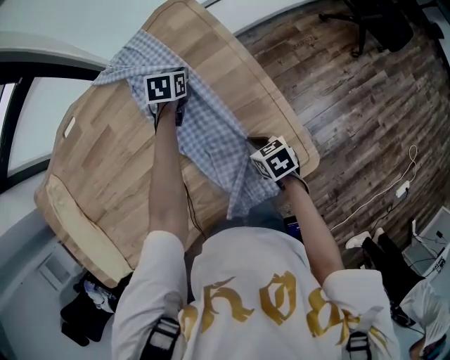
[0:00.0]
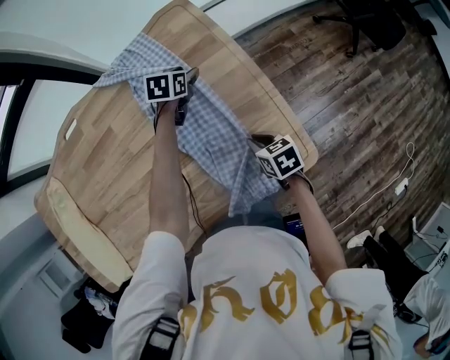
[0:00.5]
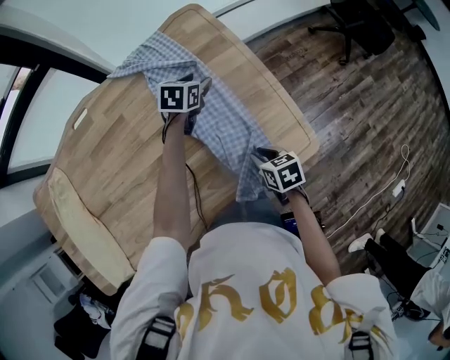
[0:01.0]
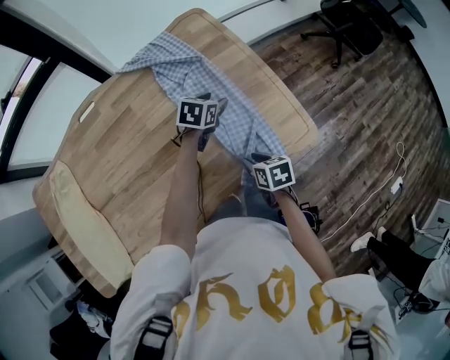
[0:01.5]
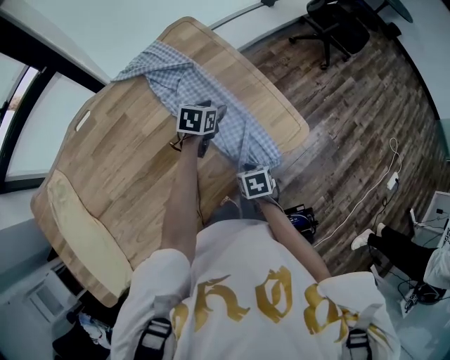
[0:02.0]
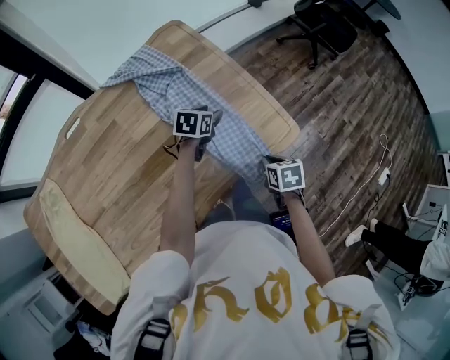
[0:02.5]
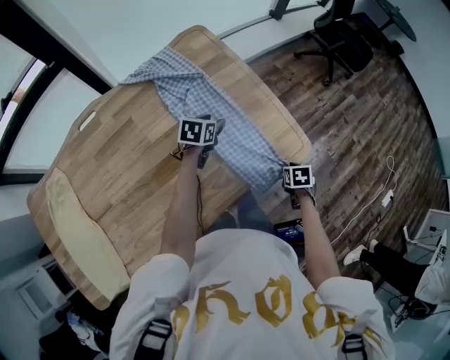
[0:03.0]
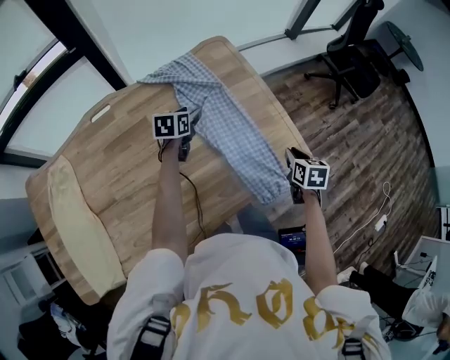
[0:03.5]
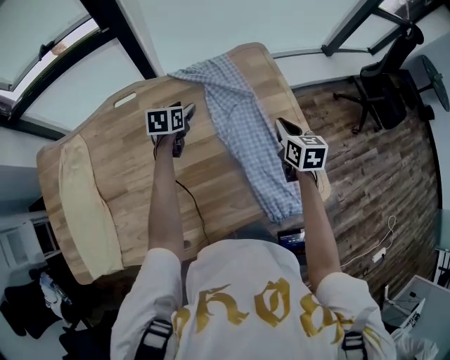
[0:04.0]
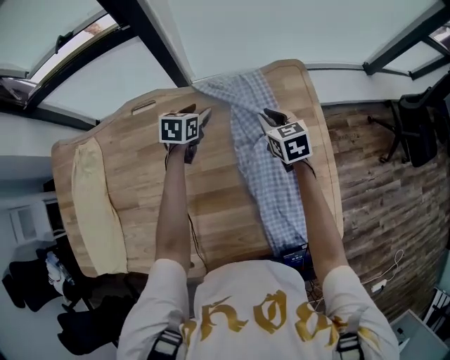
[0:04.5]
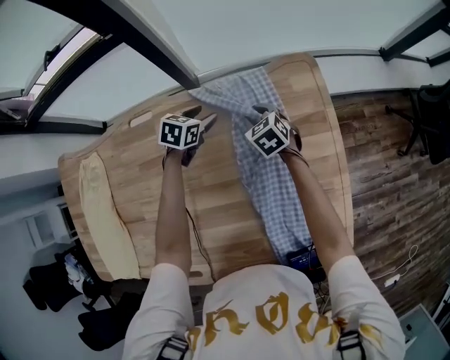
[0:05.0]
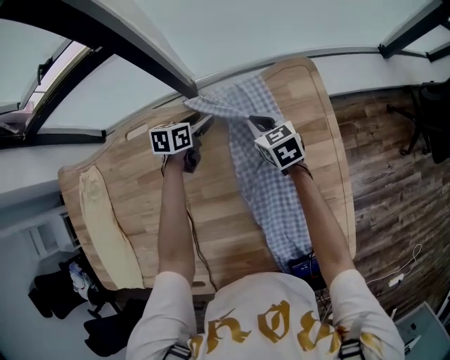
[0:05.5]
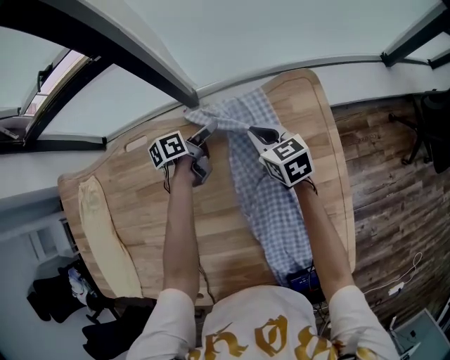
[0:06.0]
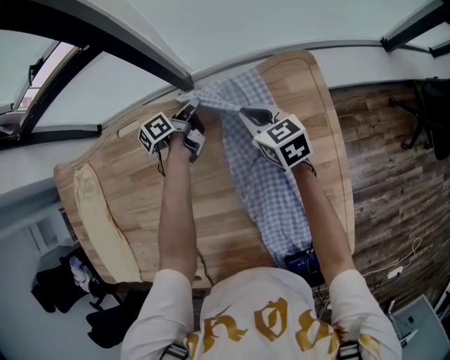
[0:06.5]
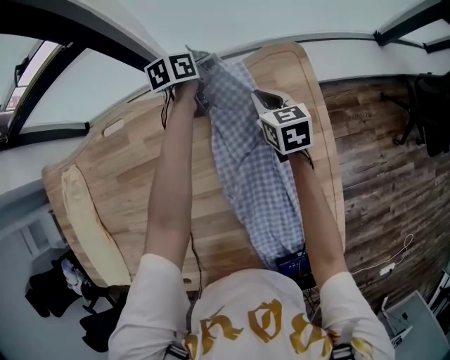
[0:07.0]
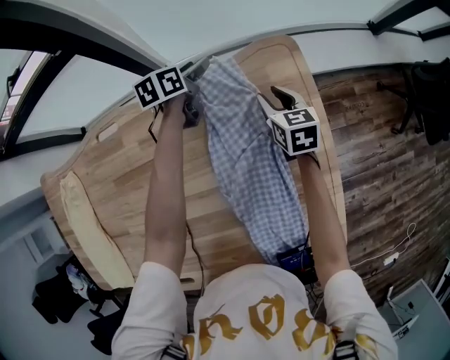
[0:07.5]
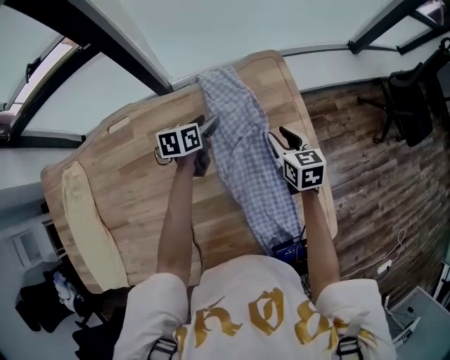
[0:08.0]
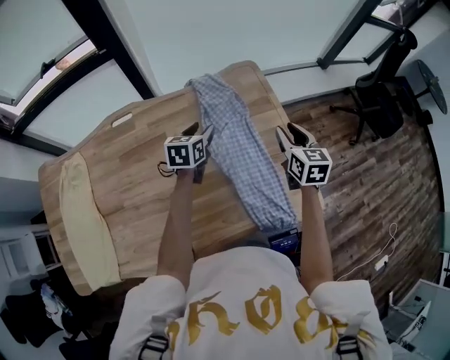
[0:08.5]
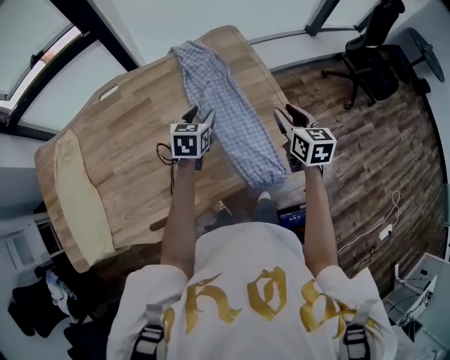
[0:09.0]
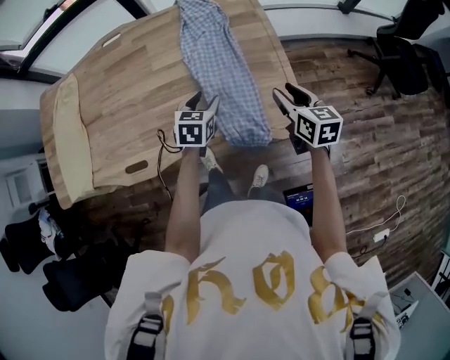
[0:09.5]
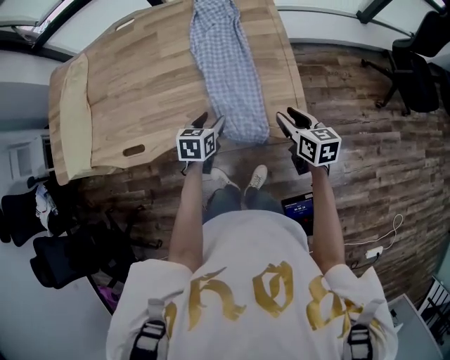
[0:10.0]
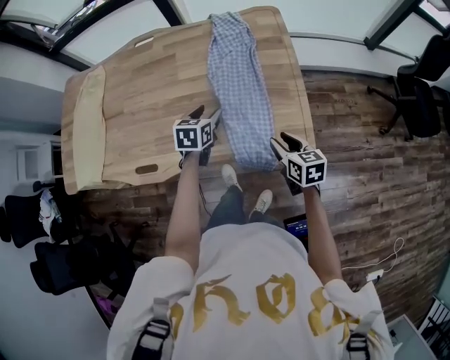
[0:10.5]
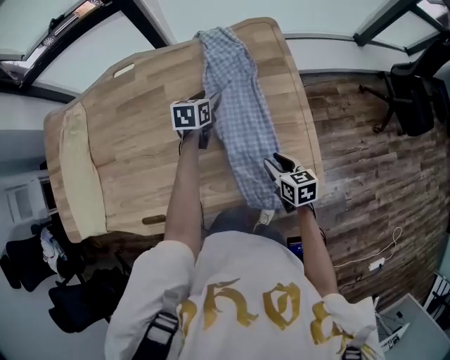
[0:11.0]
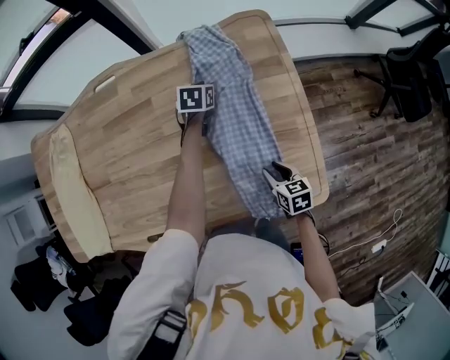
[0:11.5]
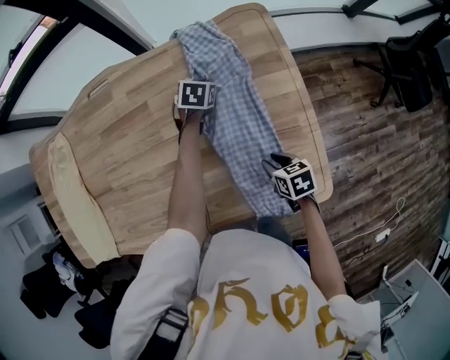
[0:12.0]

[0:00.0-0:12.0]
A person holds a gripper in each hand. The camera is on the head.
0:00.0 to 0:02.0: The left gripper changes place by roughly 25 cm, turns by approximately 20 degrees, and opens its fingers; the right gripper shifts by roughly 20 cm, turns by about 30 degrees, and opens, then closes once more.
0:02.0 to 0:04.0: The right gripper swings up and down, roughly 20 cm each way, with 2 reversals, and points its fingers some 30 degrees further upward. Meanwhile the left gripper ends up approximately 30 cm from where it was, and rotates approximately 30 degrees.
0:04.0 to 0:06.0: The right gripper moves forward, to the left and downward, some 30 cm, swivels about 30 degrees, and opens, then closes again, while the left gripper is displaced forward and downward by approximately 20 cm, and rotates around the line of its fingers by roughly 40 degrees, counterclockwise from behind.
0:06.0 to 0:08.0: The left gripper shifts approximately 10 cm backward and to the right, rotates roughly 30 degrees, and closes, then reopens. The right gripper shifts some 20 cm to the right and backward, rotates about 20 degrees, and opens up.
0:08.0 to 0:10.0: The two grippers travel together, backward, roughly 40 cm.
0:10.0 to 0:12.0: The right gripper travels forward, to the left and downward by about 25 cm, and turns by some 30 degrees, while the left gripper is displaced forward by some 40 cm, and closes up.

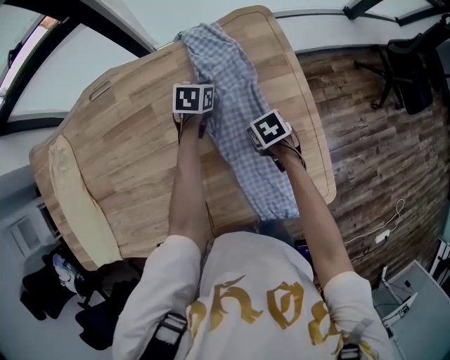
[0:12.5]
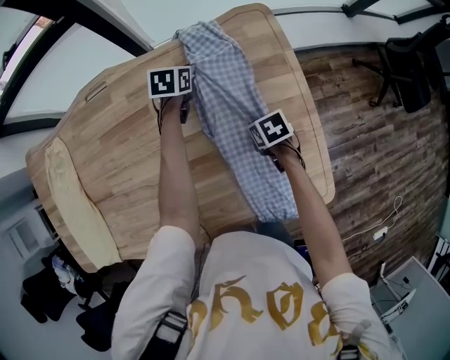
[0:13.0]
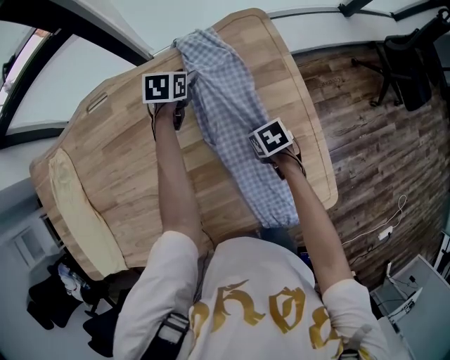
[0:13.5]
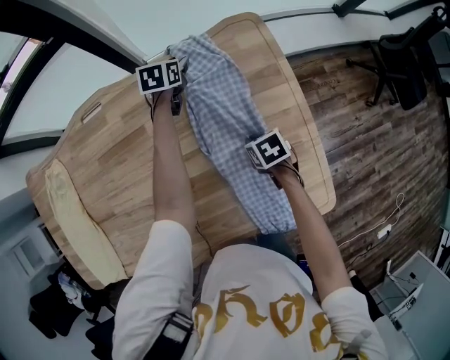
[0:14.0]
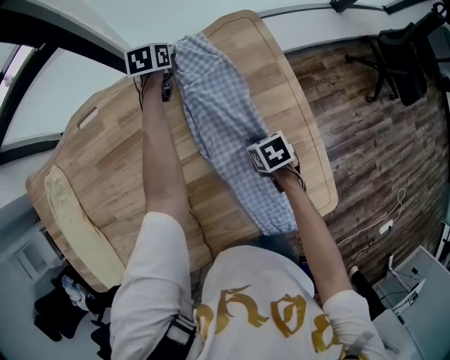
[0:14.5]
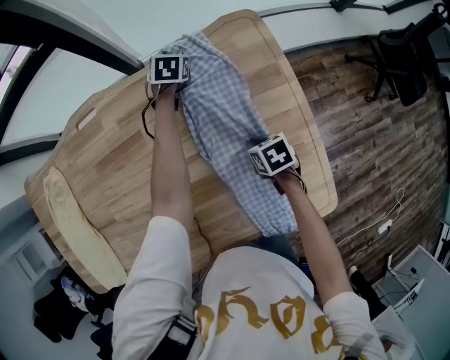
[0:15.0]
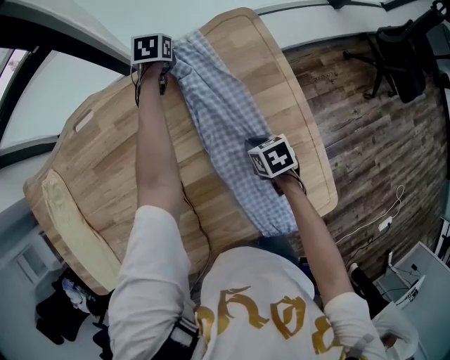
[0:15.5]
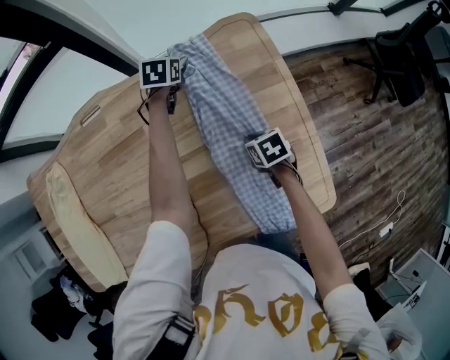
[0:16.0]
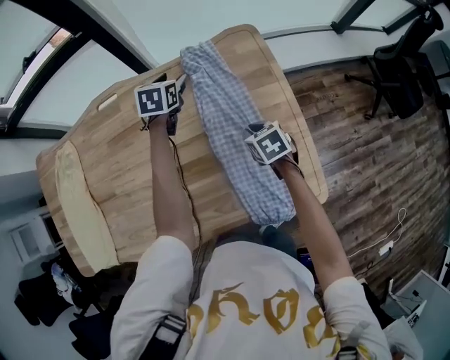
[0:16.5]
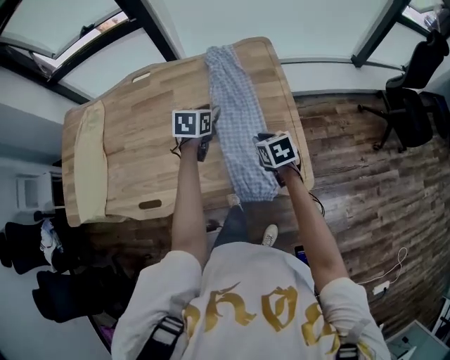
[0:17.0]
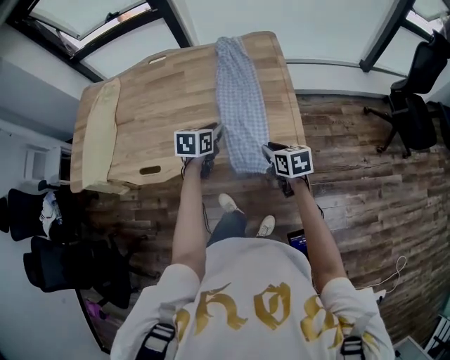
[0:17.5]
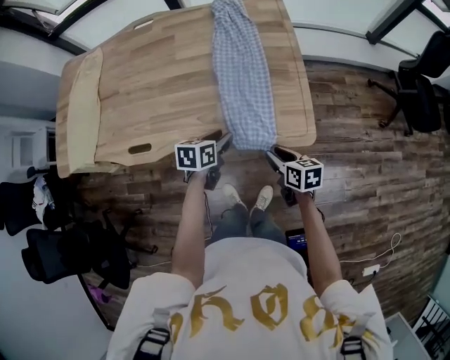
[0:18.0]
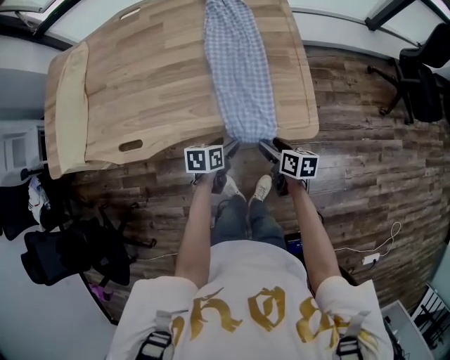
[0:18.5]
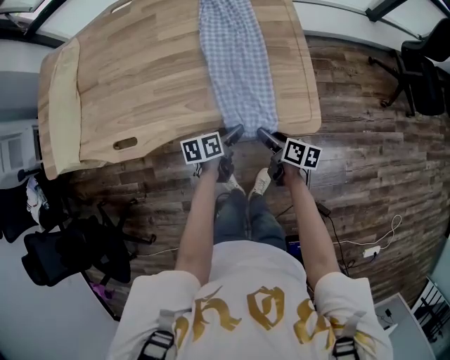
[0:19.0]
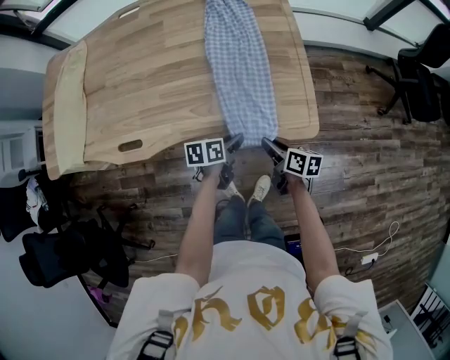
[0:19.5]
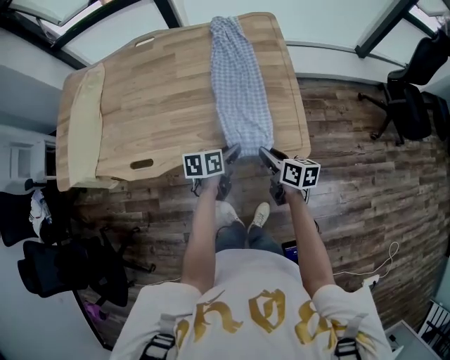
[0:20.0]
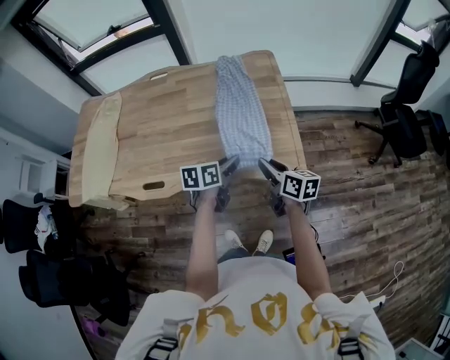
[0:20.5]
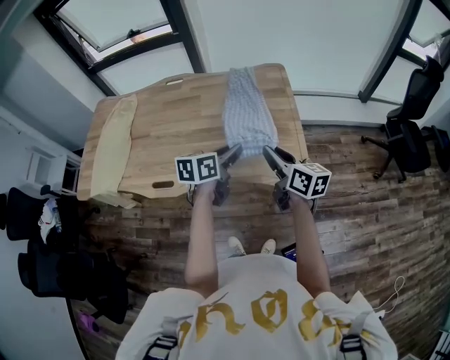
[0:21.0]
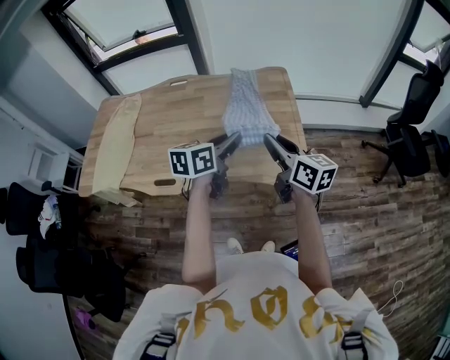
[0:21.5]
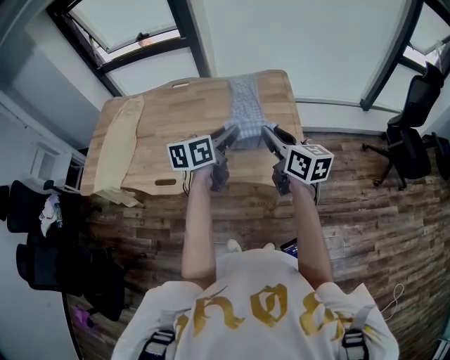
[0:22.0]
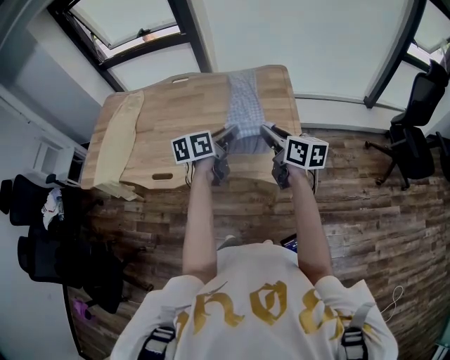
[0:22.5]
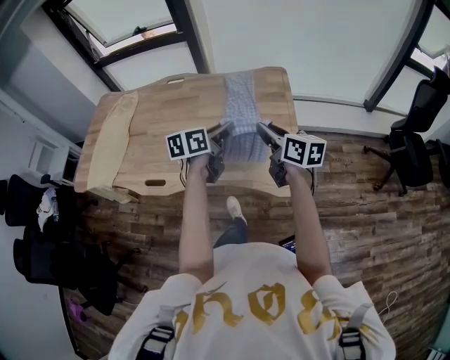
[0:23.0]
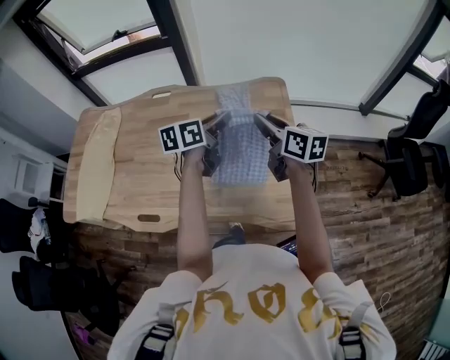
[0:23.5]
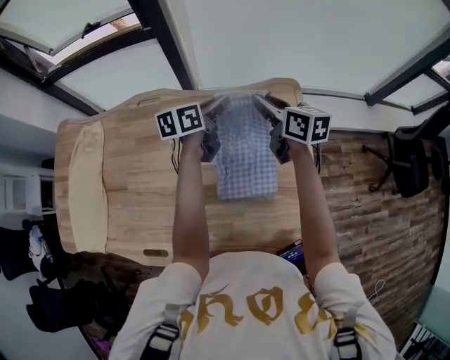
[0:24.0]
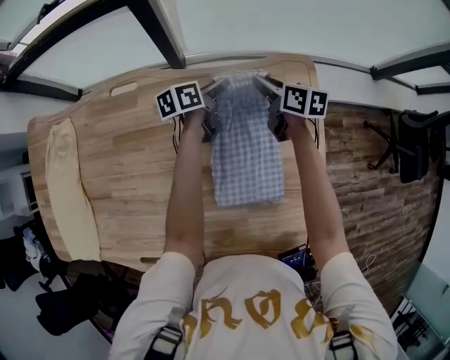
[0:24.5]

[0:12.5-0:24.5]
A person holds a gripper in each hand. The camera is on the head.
0:12.5 to 0:14.5: The left gripper moves forward, about 20 cm, and opens, then closes once more.
0:14.5 to 0:16.5: The left gripper shifts approximately 20 cm backward and upward, and opens up, while the right gripper travels upward by some 10 cm.
0:16.5 to 0:18.5: The right gripper moves backward, some 35 cm, swivels some 40 degrees, and opens its fingers; the left gripper is displaced backward by some 60 cm, turns by roughly 30 degrees, and closes and opens again.
0:18.5 to 0:20.5: The two grippers go approximately 20 cm upward. The right gripper changes its angle by some 20 degrees, and closes. Meanwhile the left gripper closes.
0:20.5 to 0:22.5: Both grippers move upward, about 15 cm.
0:22.5 to 0:24.5: The pair of grippers is taken forward, some 60 cm. The left gripper shifts approximately 25 cm downward, and swivels roughly 20 degrees. The right gripper rotates approximately 20 degrees.

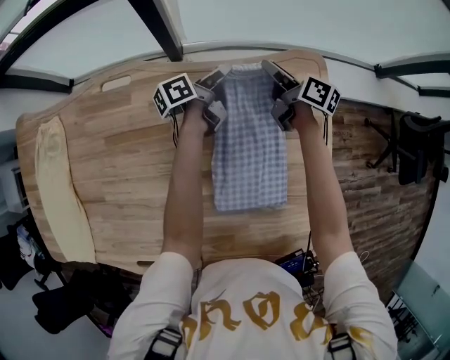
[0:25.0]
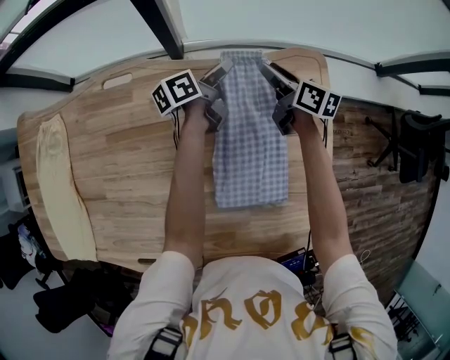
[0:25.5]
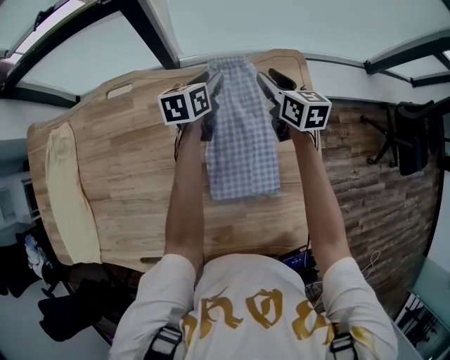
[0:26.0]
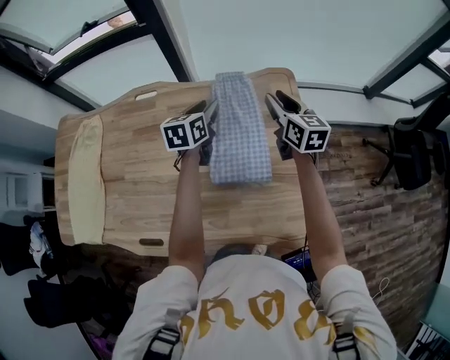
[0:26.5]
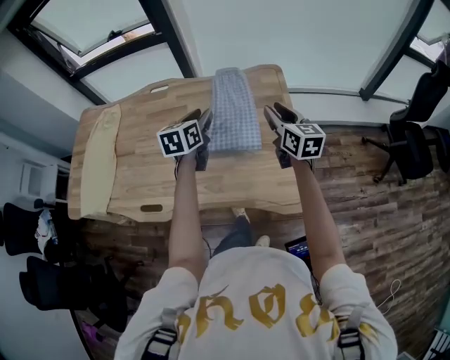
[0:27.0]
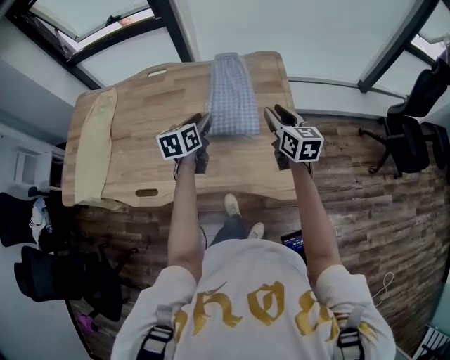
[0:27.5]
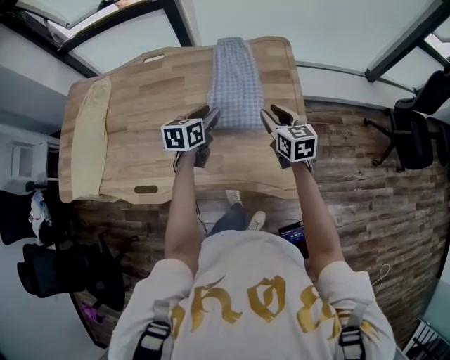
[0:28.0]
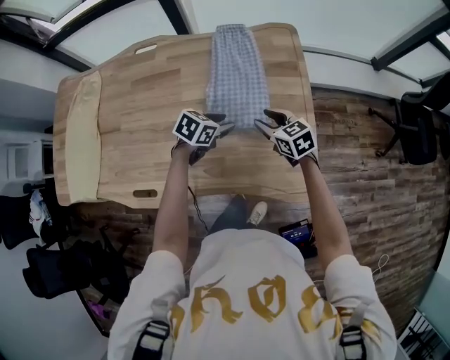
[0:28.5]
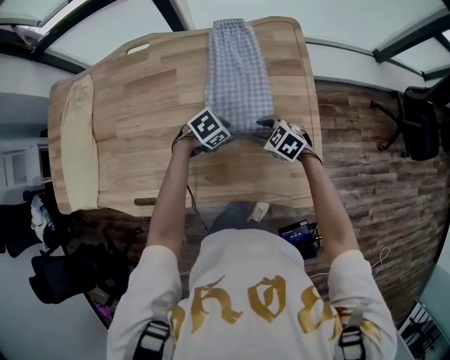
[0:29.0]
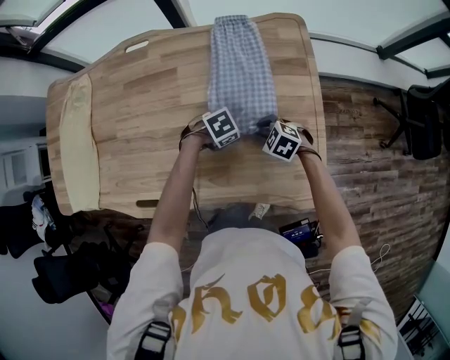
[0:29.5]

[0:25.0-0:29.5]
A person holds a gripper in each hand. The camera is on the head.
0:25.0 to 0:27.0: Both grippers are carried backward, about 40 cm. Both grippers travel together upward, approximately 25 cm. The left gripper twists some 60 degrees clockwise, seen from behind, while the right gripper turns by about 40 degrees.
0:27.0 to 0:29.5: Both grippers move downward, roughly 30 cm. The left gripper angles its fingers downward, by some 40 degrees, while the right gripper tilts its fingers some 50 degrees downward.
